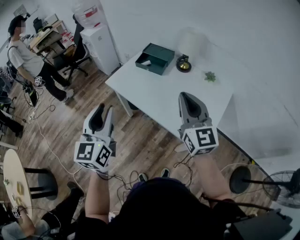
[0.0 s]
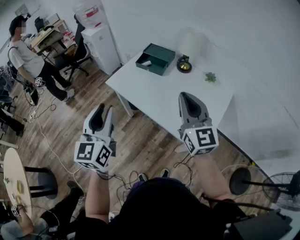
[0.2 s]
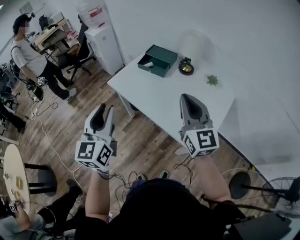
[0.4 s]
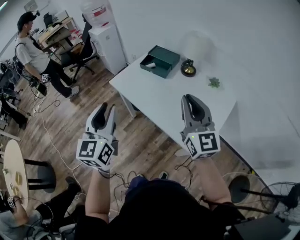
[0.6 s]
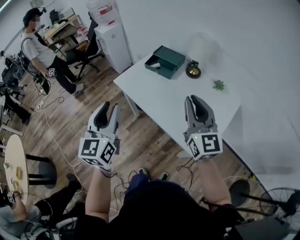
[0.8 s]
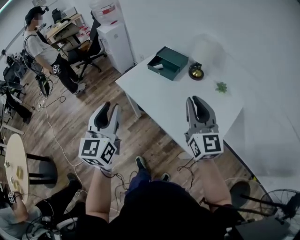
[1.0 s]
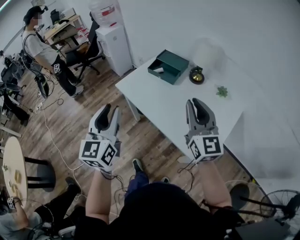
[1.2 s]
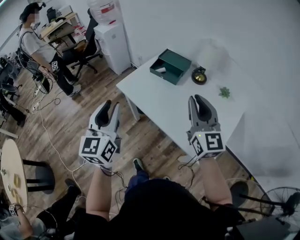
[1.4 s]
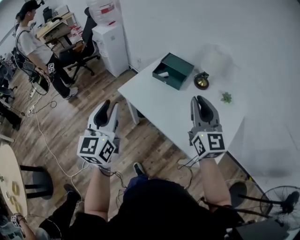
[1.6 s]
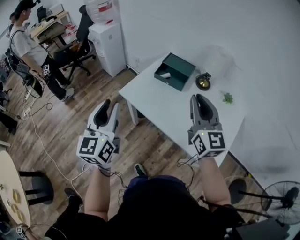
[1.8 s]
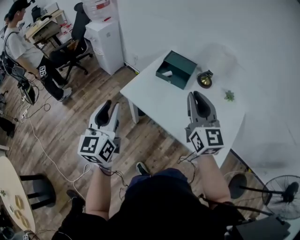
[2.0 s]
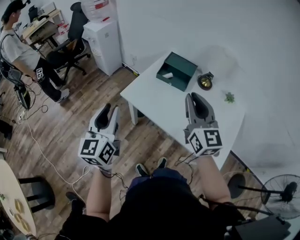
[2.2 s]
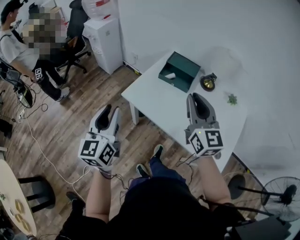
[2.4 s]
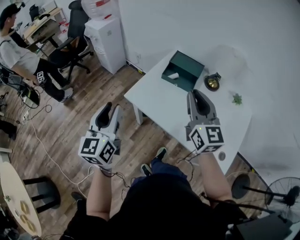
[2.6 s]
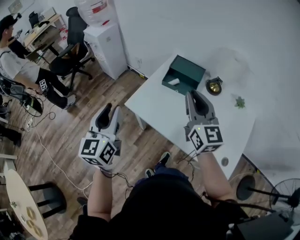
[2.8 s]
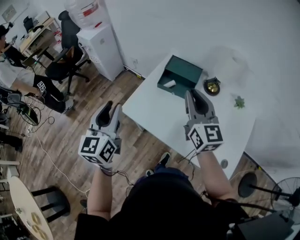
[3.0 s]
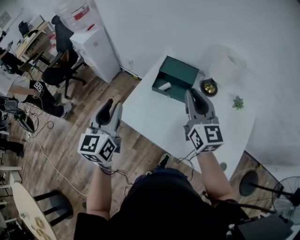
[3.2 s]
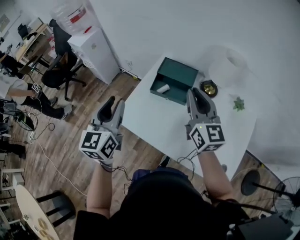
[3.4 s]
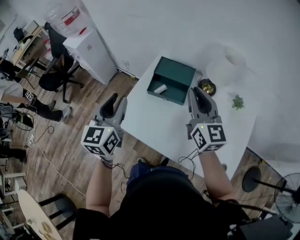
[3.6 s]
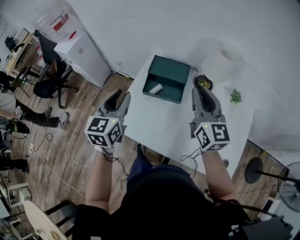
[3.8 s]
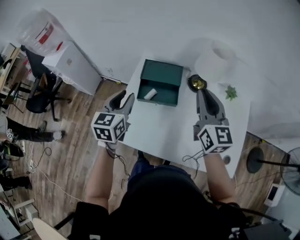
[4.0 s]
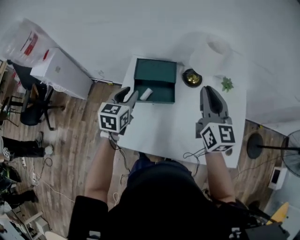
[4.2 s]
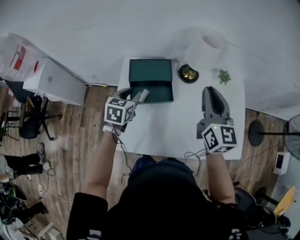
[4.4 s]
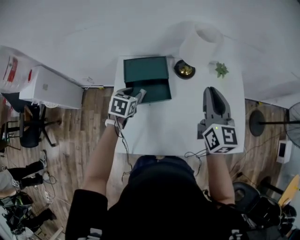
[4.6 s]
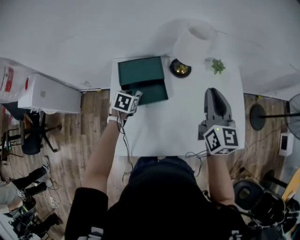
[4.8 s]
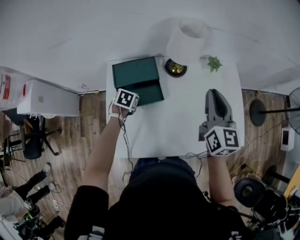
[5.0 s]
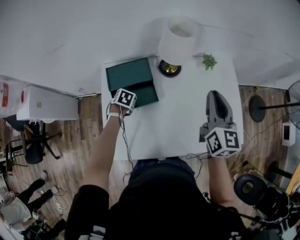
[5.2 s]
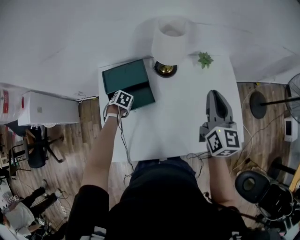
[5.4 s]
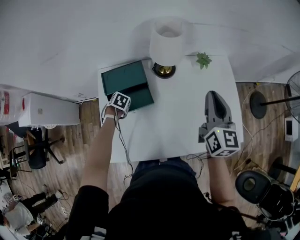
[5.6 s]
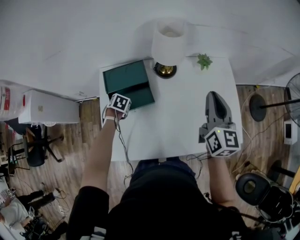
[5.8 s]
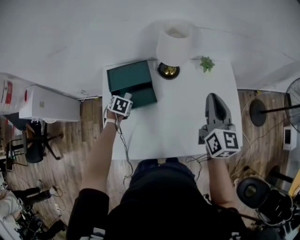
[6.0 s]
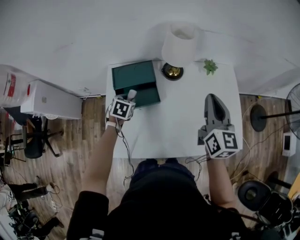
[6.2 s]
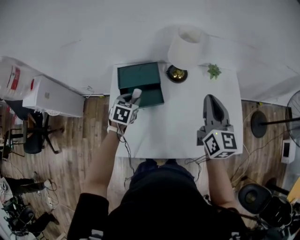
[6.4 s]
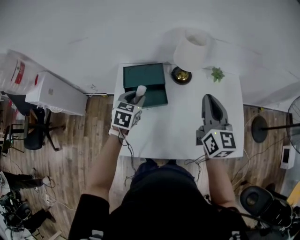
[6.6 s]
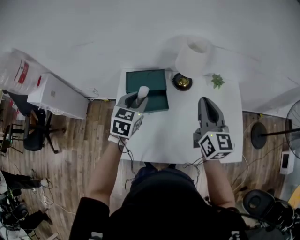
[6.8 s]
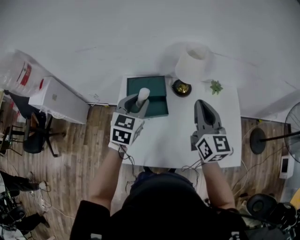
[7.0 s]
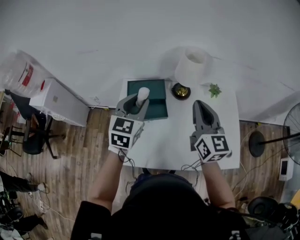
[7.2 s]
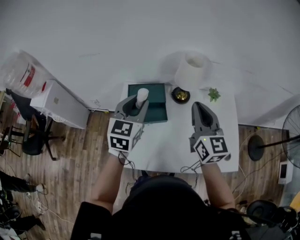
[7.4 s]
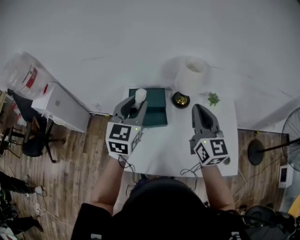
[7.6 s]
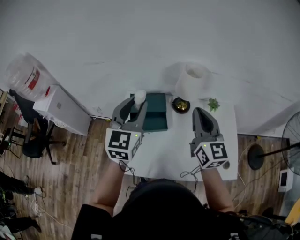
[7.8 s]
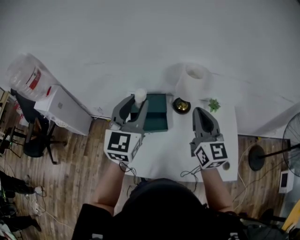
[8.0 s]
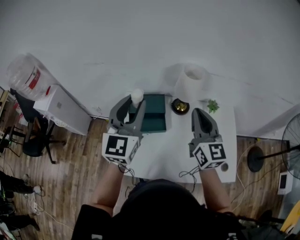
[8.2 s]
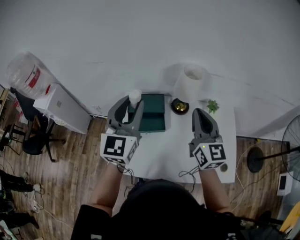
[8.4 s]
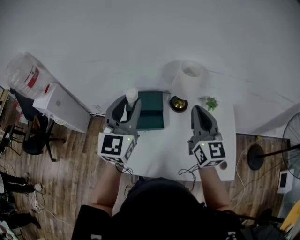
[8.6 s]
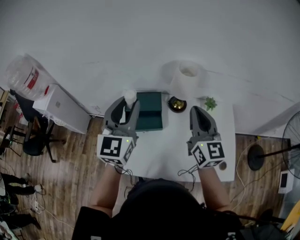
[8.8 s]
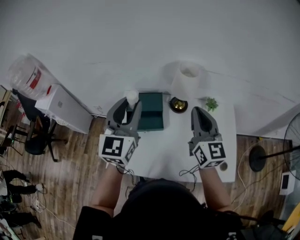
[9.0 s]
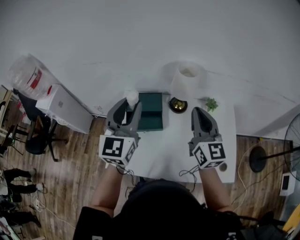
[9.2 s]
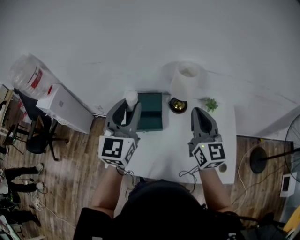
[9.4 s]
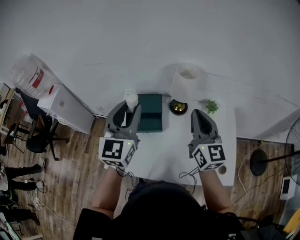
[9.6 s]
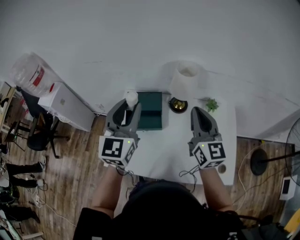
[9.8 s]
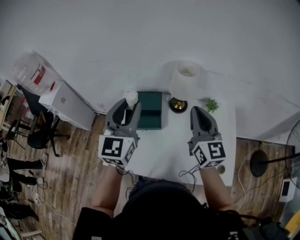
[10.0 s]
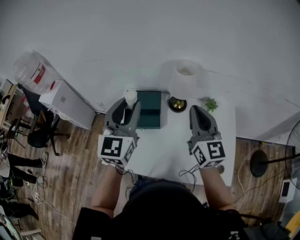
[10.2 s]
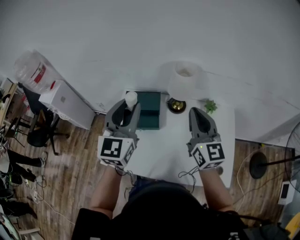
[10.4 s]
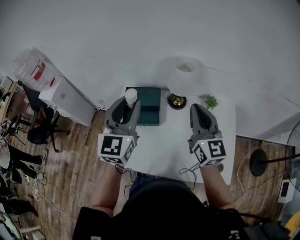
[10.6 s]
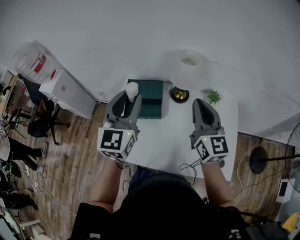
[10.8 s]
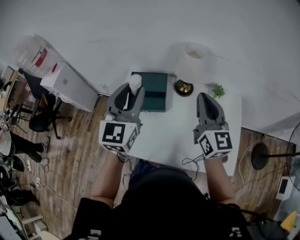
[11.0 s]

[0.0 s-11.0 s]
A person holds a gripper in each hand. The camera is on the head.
0.0 to 1.6 s: The grippers both shift forward and to the left by roughly 15 cm.
1.6 to 3.2 s: The grippers both shift forward by about 25 cm.
3.2 to 4.8 s: The right gripper ends up about 20 cm from where it was, and swivels about 40 degrees, while the left gripper changes place by about 50 cm, and tips its fingers downward by roughly 50 degrees.
4.8 to 6.2 s: The left gripper goes downward and returns, approximately 10 cm each way.
6.2 to 7.8 s: The left gripper heads upward, covering approximately 35 cm, and points its fingers some 50 degrees further upward; the right gripper heads upward and to the left, covering approximately 15 cm.
7.8 to 9.4 s: The right gripper shifts roughly 5 cm to the right.
9.4 to 11.0 s: There are only small adjustments of the grippers.

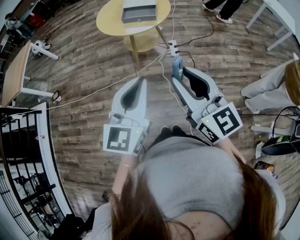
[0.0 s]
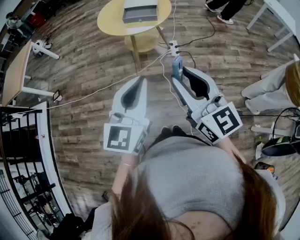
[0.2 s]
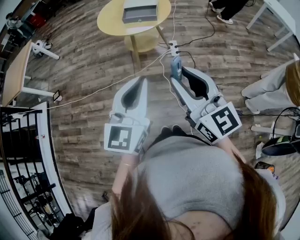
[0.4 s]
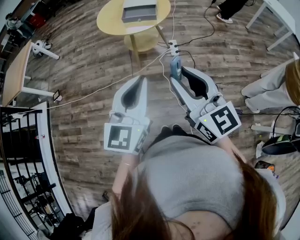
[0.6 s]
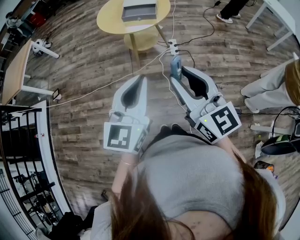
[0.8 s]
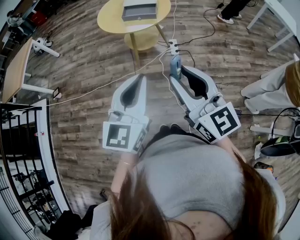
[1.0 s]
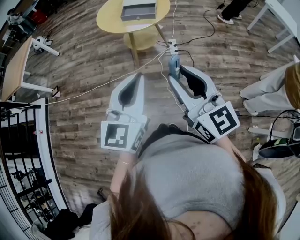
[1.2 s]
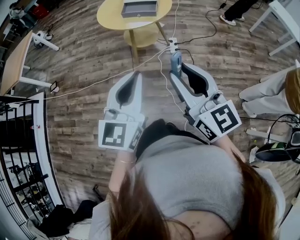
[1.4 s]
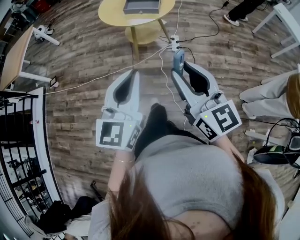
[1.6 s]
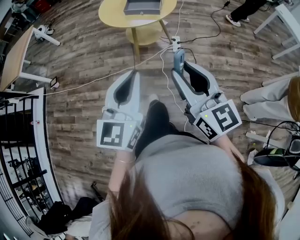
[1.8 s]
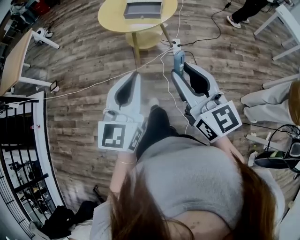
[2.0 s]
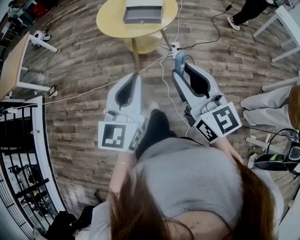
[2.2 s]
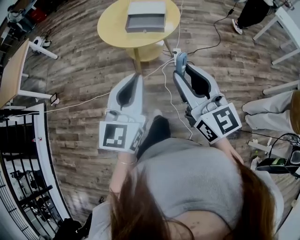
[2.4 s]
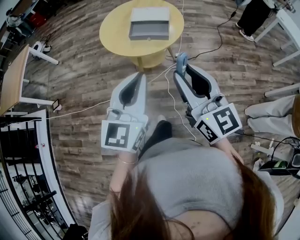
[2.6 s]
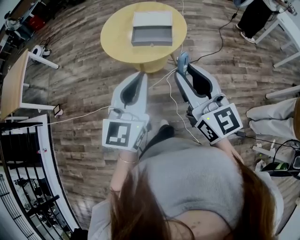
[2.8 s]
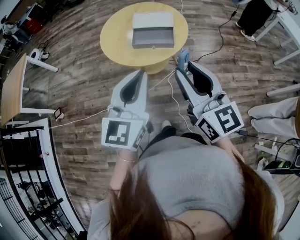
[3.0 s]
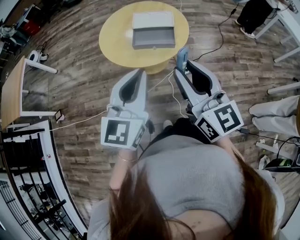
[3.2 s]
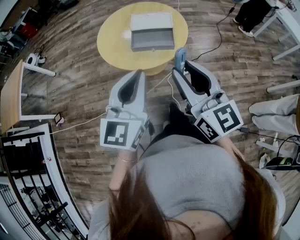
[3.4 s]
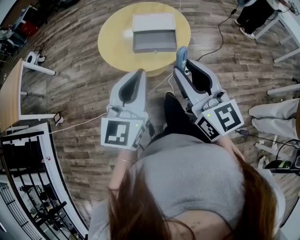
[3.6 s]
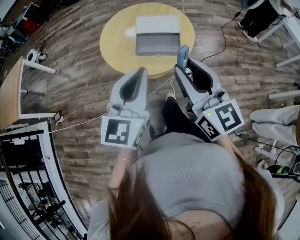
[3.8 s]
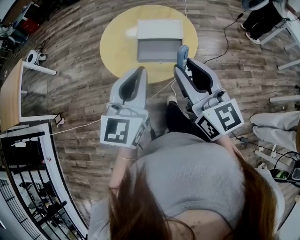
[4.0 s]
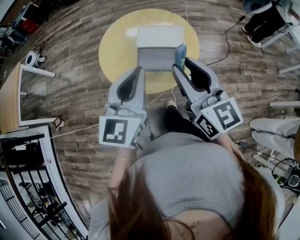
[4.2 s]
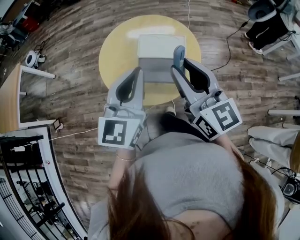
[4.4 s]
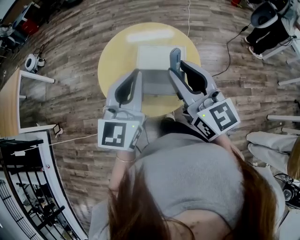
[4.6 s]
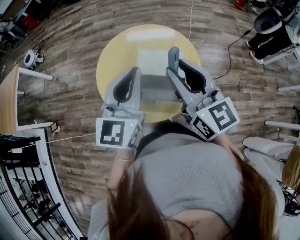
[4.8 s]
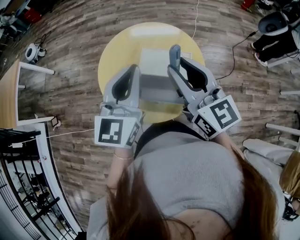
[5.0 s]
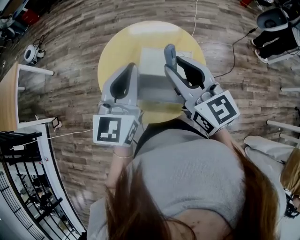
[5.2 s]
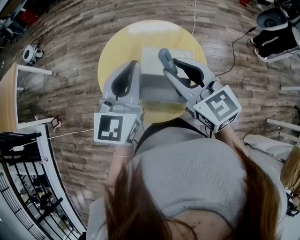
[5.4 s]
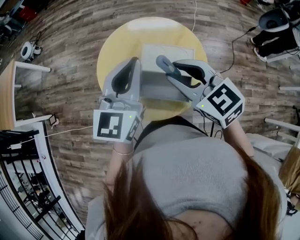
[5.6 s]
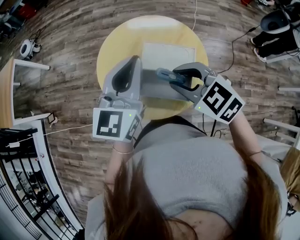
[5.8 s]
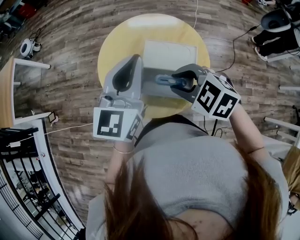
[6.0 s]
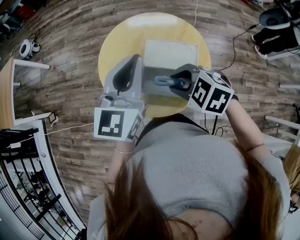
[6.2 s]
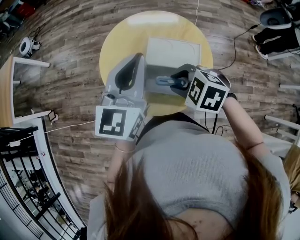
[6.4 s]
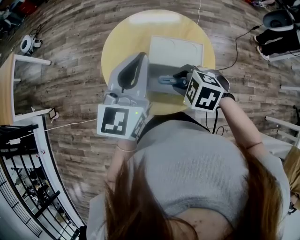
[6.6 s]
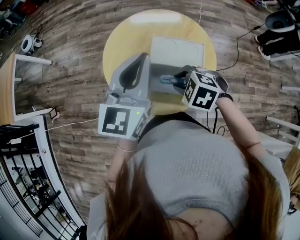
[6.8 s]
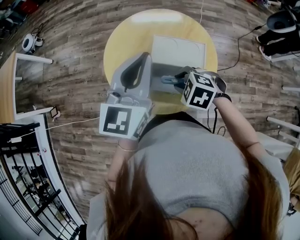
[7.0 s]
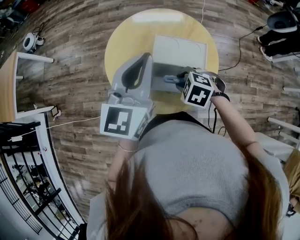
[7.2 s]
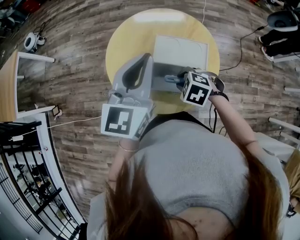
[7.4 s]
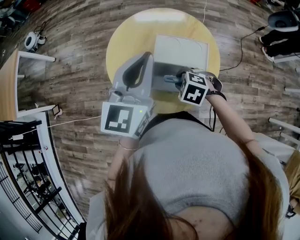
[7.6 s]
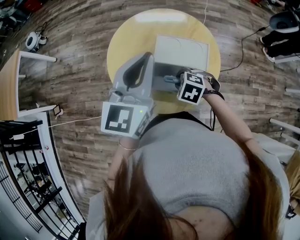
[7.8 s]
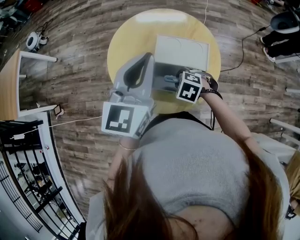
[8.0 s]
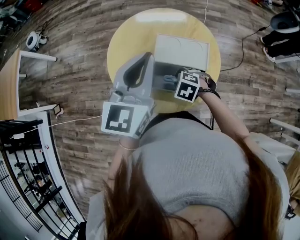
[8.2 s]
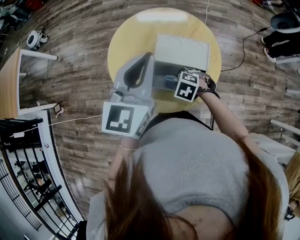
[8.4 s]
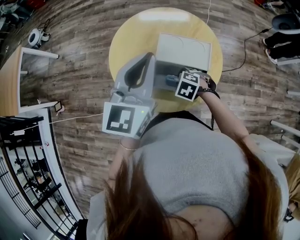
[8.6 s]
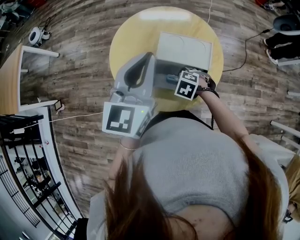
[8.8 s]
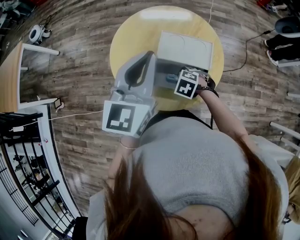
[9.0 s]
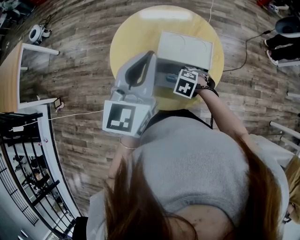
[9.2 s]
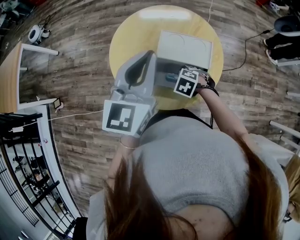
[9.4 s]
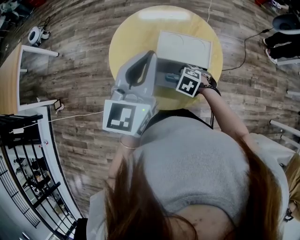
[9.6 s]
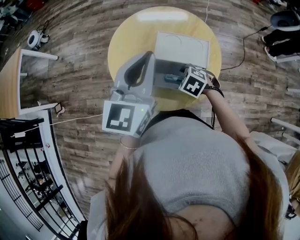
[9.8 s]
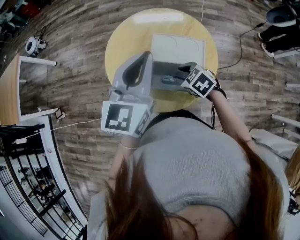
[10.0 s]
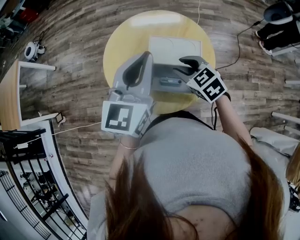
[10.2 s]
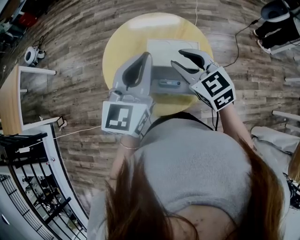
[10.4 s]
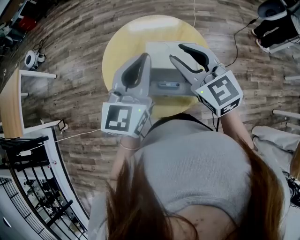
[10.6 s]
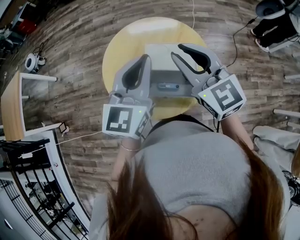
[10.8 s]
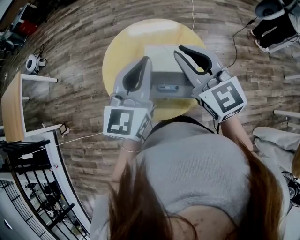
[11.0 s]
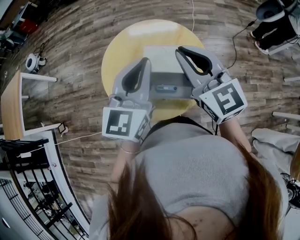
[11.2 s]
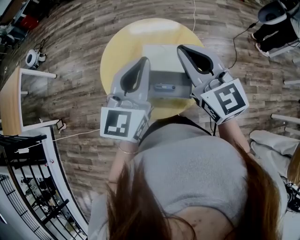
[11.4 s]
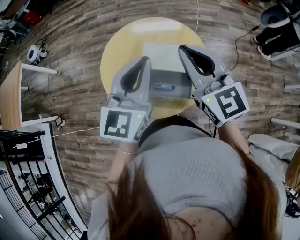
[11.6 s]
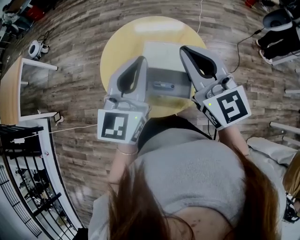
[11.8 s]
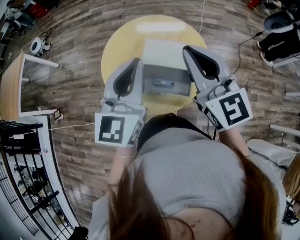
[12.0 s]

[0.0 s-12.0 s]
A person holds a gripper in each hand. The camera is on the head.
0.0 to 1.6 s: The grippers stay close to where they were, moving slightly.
1.6 to 3.0 s: Both grippers travel together forward, roughly 25 cm.
3.0 to 4.4 s: The two grippers go approximately 25 cm forward.
4.4 to 6.0 s: The right gripper is displaced downward and forward by approximately 15 cm, and tilts its fingers some 50 degrees downward. The left gripper travels forward by approximately 10 cm.
6.0 to 7.6 s: The right gripper travels downward by about 15 cm, and turns by roughly 20 degrees.
7.6 to 9.0 s: The right gripper shifts some 10 cm downward.
9.0 to 10.4 s: The right gripper moves upward, some 25 cm, and angles its fingers upward, by approximately 50 degrees.
10.4 to 12.0 s: The right gripper travels upward by about 10 cm, rotates roughly 30 degrees, and closes.

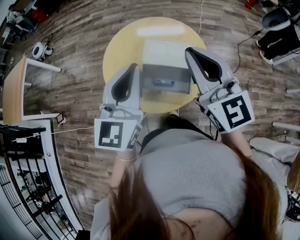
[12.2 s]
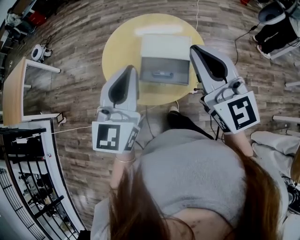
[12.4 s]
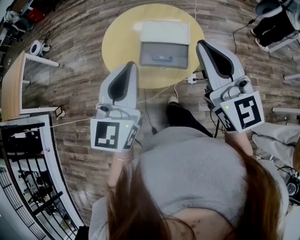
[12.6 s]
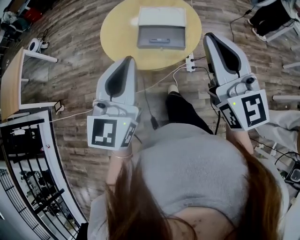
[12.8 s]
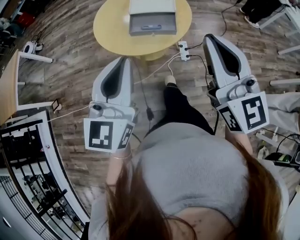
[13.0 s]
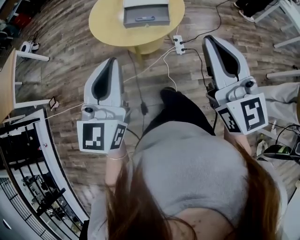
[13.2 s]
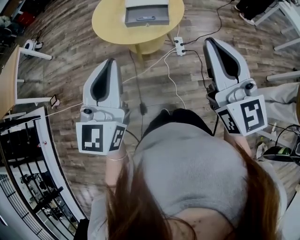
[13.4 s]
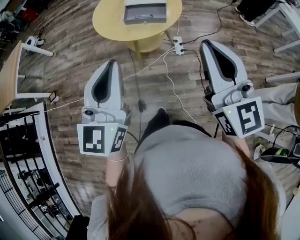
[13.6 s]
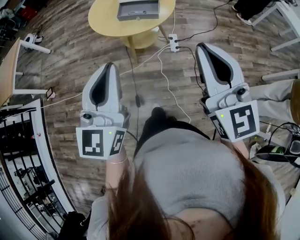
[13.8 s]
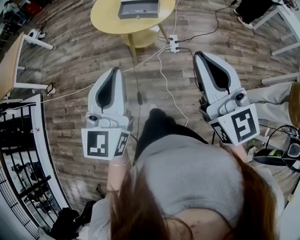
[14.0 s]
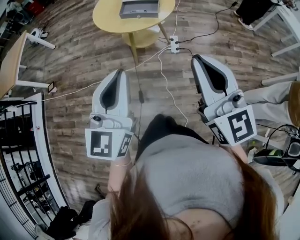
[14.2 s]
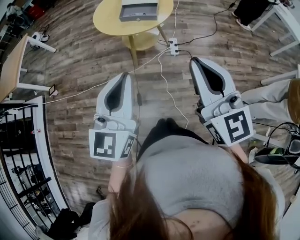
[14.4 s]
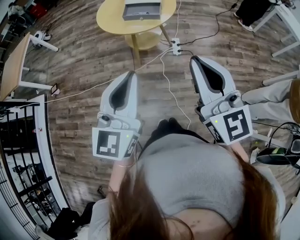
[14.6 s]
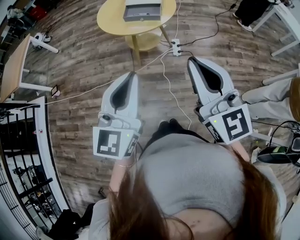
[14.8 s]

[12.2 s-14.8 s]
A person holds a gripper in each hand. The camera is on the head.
12.2 to 13.4 s: The two grippers go roughly 35 cm backward.
13.4 to 14.8 s: The left gripper goes approximately 20 cm backward and to the right. Meanwhile the right gripper heads backward, covering roughly 15 cm.
